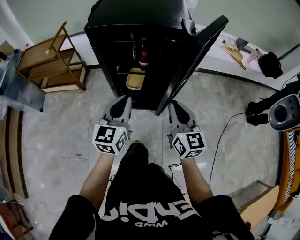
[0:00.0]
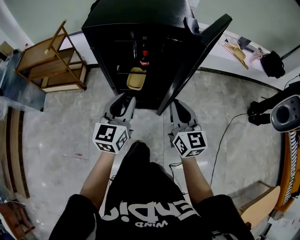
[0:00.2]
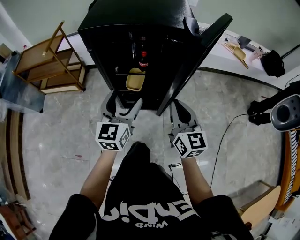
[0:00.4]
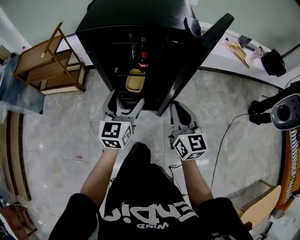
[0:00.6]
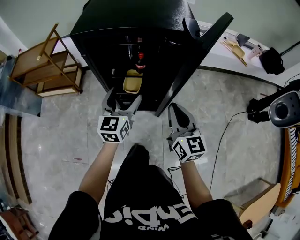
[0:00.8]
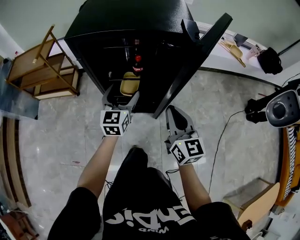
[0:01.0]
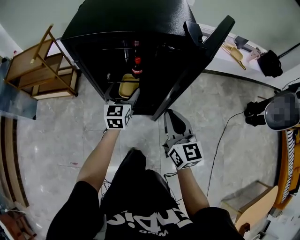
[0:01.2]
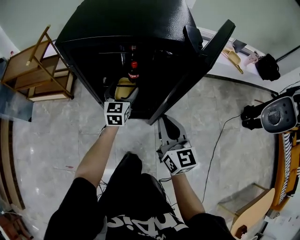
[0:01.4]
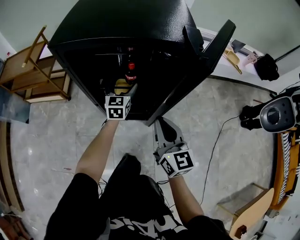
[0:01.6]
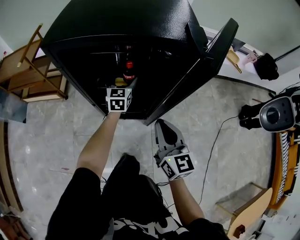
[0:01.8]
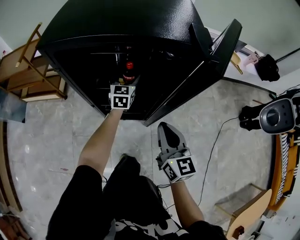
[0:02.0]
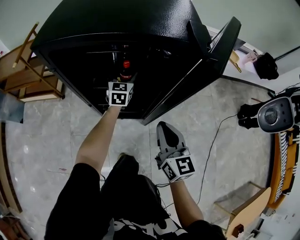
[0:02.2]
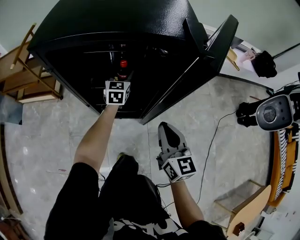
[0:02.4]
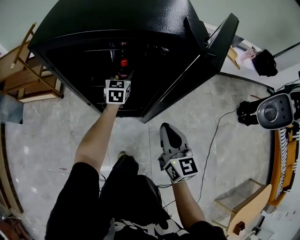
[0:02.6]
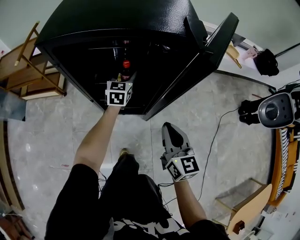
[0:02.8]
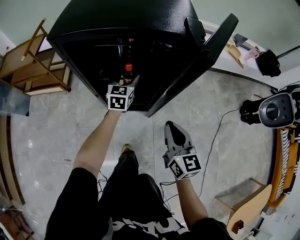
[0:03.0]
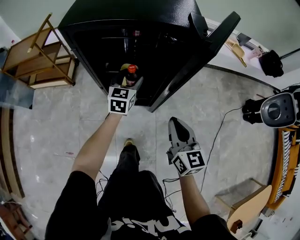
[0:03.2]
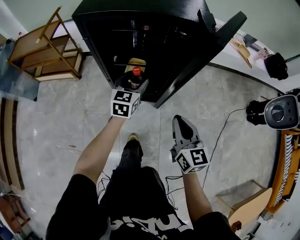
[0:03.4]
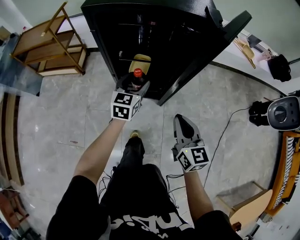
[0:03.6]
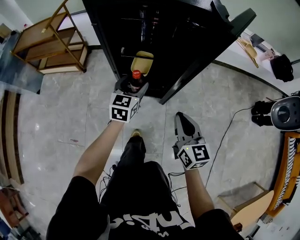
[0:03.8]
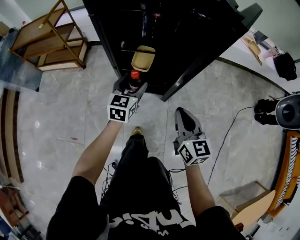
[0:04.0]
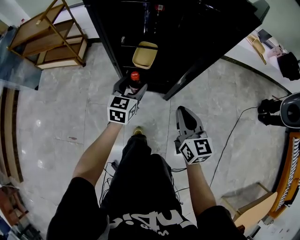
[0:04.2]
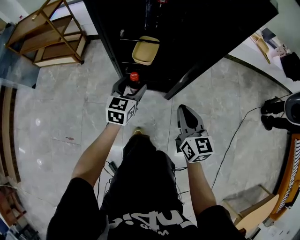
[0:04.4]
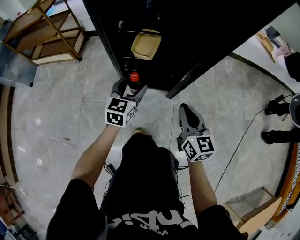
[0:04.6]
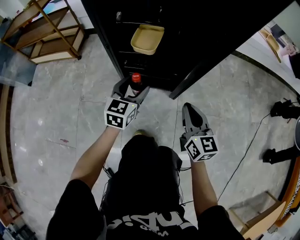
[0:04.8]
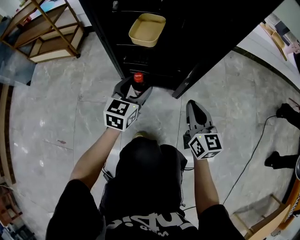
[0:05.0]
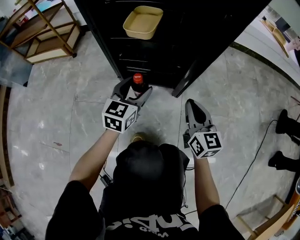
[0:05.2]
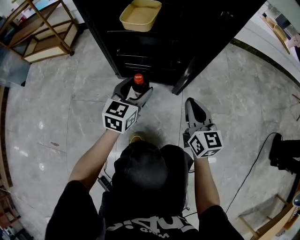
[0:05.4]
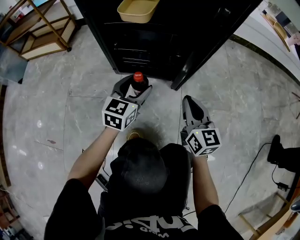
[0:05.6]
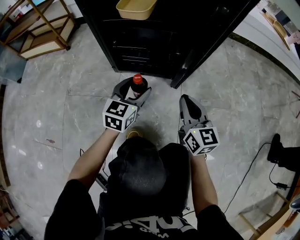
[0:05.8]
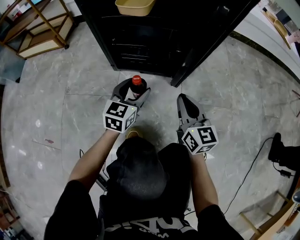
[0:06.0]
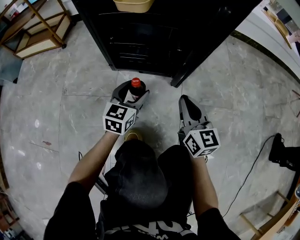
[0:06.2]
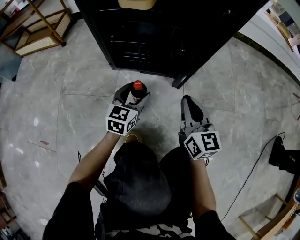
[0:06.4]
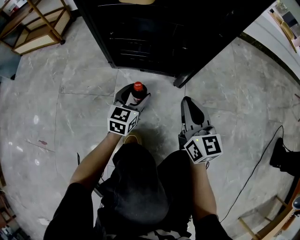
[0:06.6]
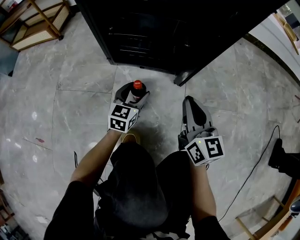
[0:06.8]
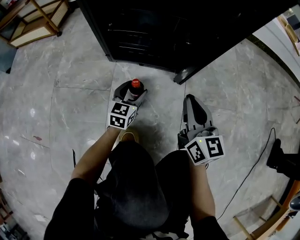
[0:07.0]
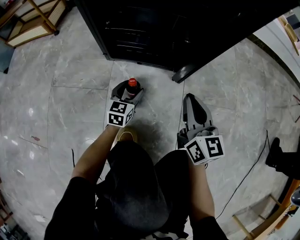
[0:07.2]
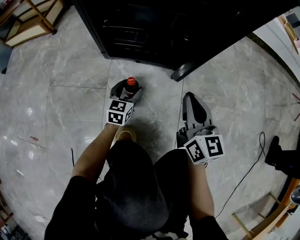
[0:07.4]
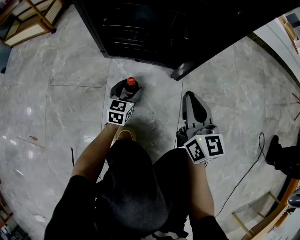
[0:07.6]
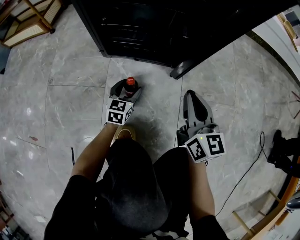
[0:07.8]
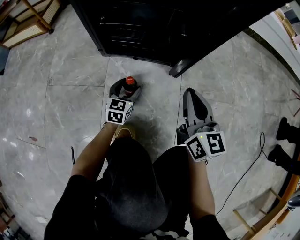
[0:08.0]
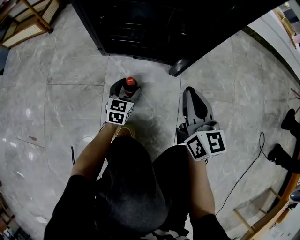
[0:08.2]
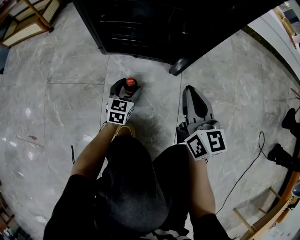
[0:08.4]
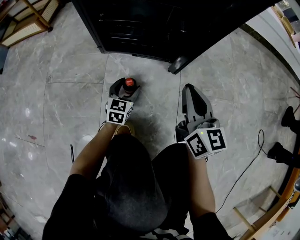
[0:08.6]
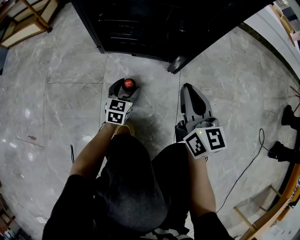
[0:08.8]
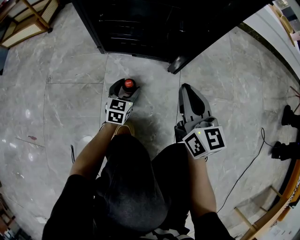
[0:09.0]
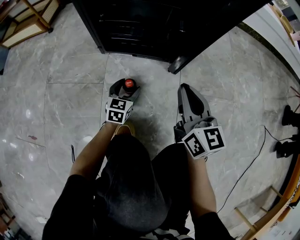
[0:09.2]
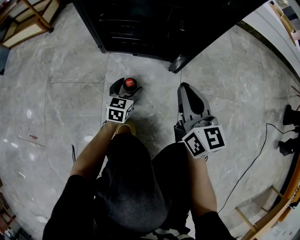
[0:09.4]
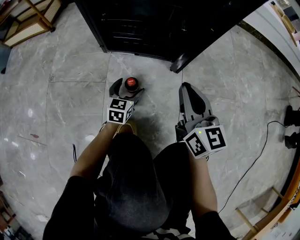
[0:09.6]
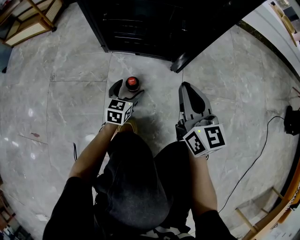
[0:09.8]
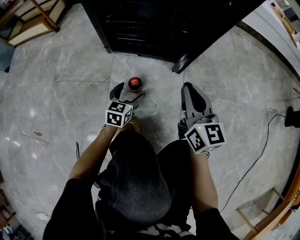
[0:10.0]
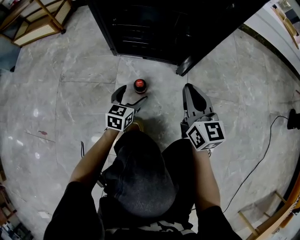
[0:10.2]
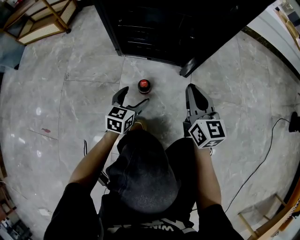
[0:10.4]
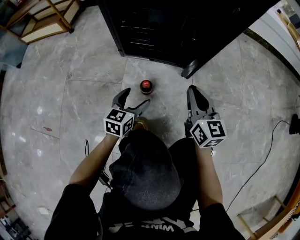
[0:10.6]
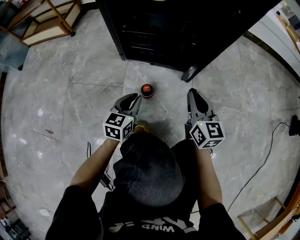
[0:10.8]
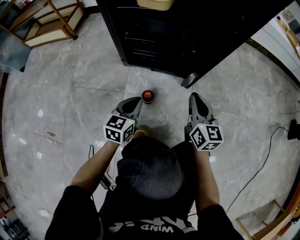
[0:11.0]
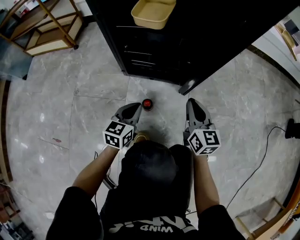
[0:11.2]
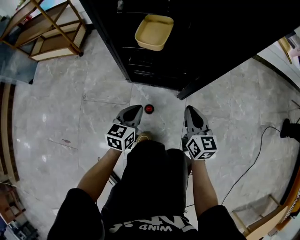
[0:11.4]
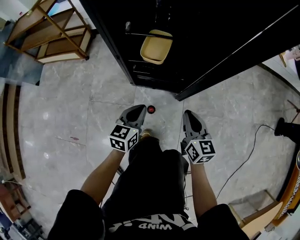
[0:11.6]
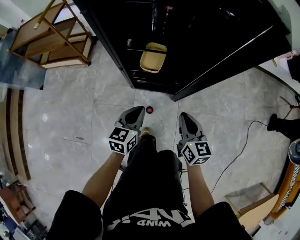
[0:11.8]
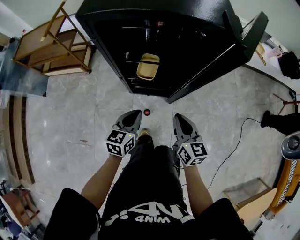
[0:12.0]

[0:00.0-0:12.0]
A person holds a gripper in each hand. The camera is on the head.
0:00.0 to 0:01.6: The right gripper goes about 10 cm forward and downward, while the left gripper shifts some 30 cm forward and downward, and opens its fingers.
0:01.6 to 0:03.0: The left gripper travels forward and back again, approximately 5 cm each way. Meanwhile the right gripper ends up roughly 5 cm from where it was.
0:03.0 to 0:04.4: The right gripper shifts some 15 cm downward; the left gripper heads backward and downward, covering about 20 cm.
0:04.4 to 0:06.0: The grippers both shift downward by about 30 cm.
0:06.0 to 0:07.6: The left gripper heads downward, covering approximately 20 cm.
0:07.6 to 0:09.0: There are only small adjustments of the grippers.
0:09.0 to 0:10.4: The left gripper travels upward and backward by about 10 cm.
0:10.4 to 0:12.0: The two grippers go approximately 50 cm upward. The left gripper closes up.

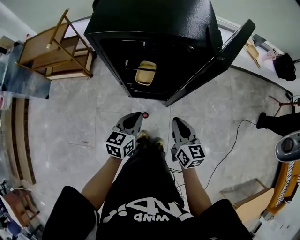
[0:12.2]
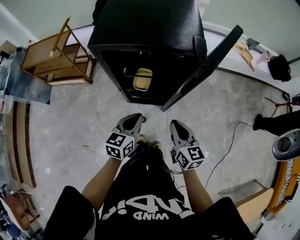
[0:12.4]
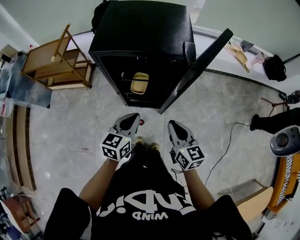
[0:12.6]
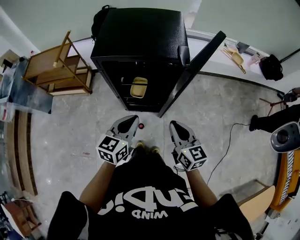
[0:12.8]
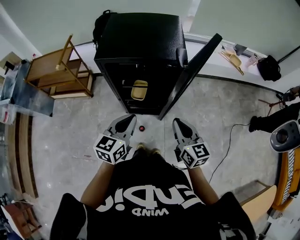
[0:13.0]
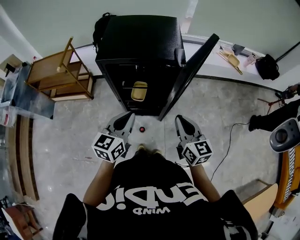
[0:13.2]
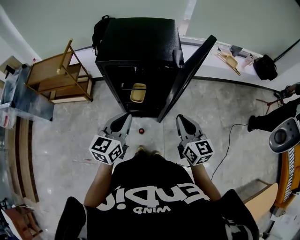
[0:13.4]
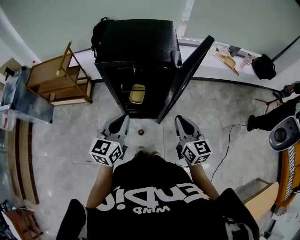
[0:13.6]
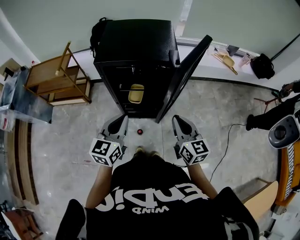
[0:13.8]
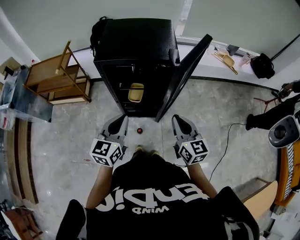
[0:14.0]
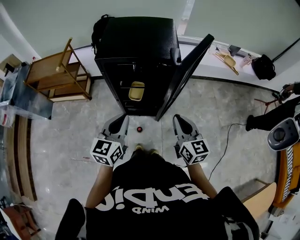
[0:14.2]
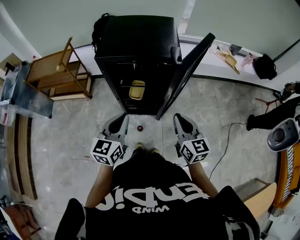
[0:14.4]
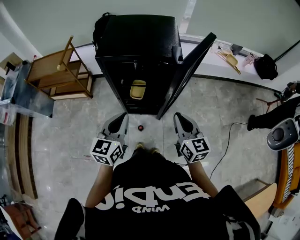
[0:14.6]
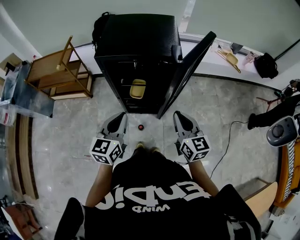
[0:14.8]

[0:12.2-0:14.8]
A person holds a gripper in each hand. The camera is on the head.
0:12.2 to 0:13.4: The grippers both shift upward by some 20 cm.
0:13.4 to 0:14.8: The grippers move only a little.

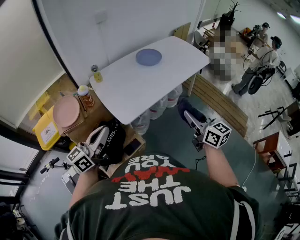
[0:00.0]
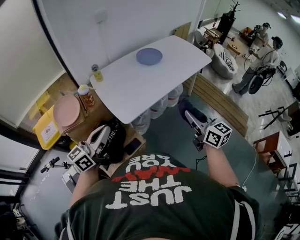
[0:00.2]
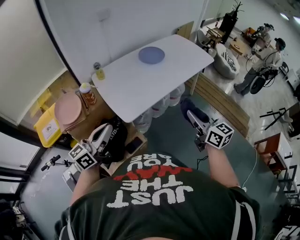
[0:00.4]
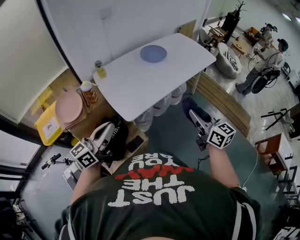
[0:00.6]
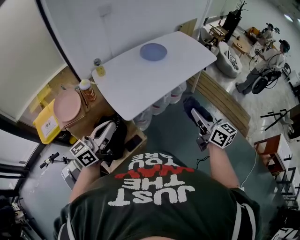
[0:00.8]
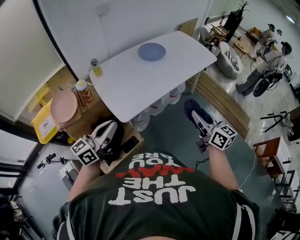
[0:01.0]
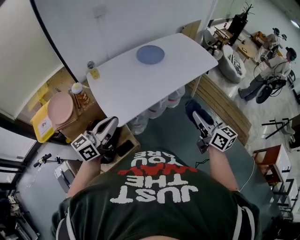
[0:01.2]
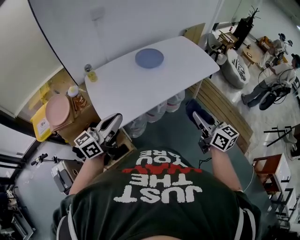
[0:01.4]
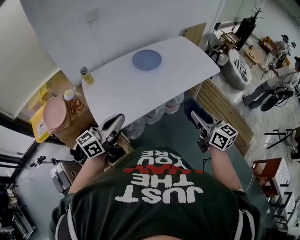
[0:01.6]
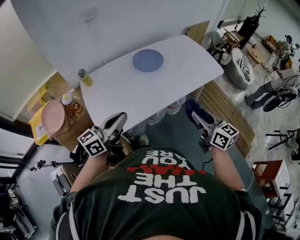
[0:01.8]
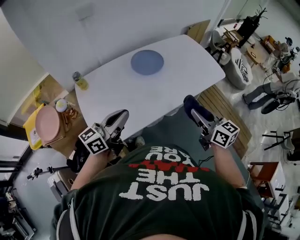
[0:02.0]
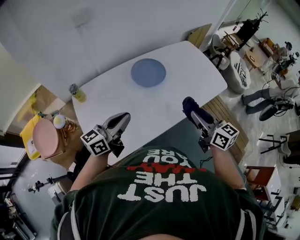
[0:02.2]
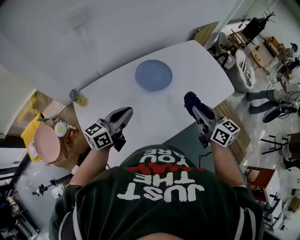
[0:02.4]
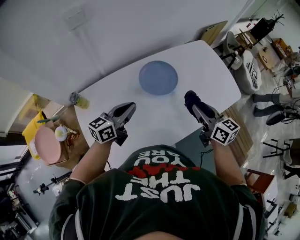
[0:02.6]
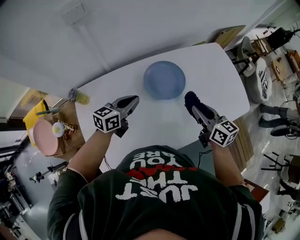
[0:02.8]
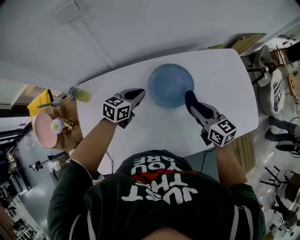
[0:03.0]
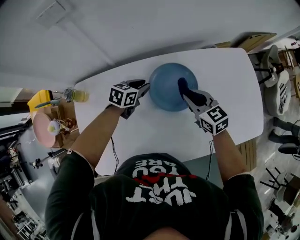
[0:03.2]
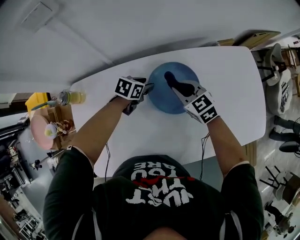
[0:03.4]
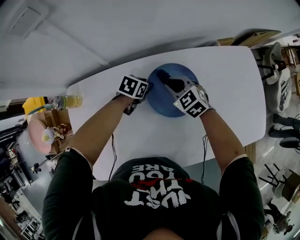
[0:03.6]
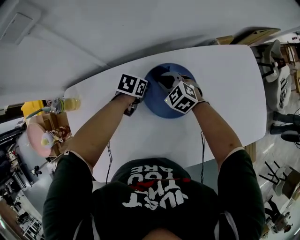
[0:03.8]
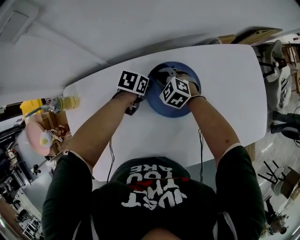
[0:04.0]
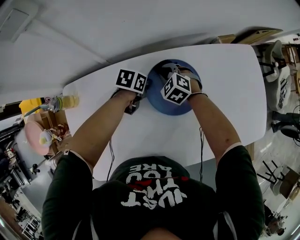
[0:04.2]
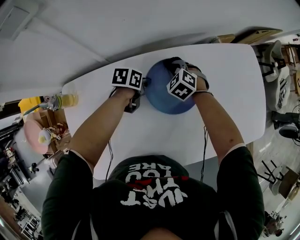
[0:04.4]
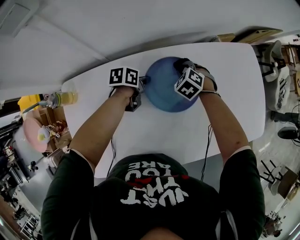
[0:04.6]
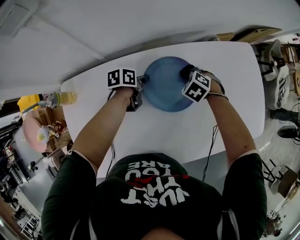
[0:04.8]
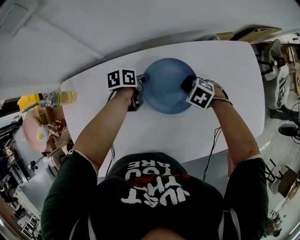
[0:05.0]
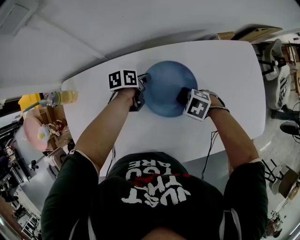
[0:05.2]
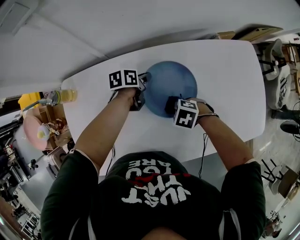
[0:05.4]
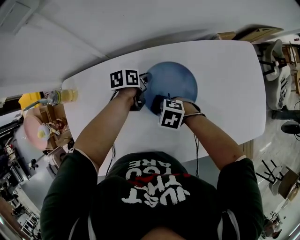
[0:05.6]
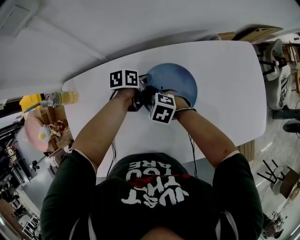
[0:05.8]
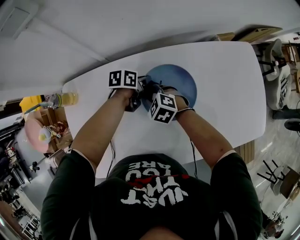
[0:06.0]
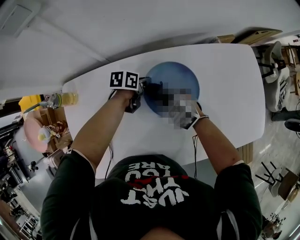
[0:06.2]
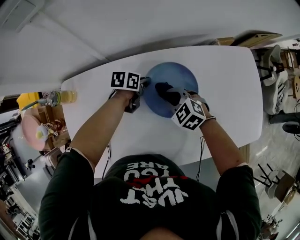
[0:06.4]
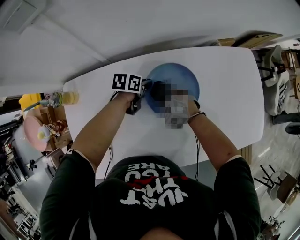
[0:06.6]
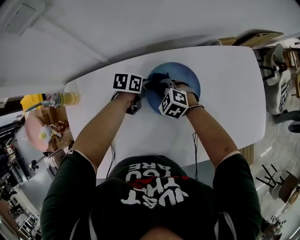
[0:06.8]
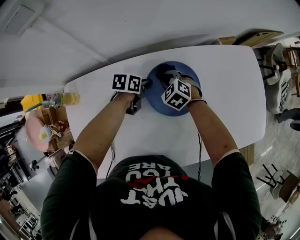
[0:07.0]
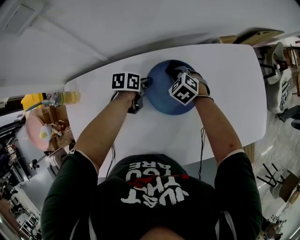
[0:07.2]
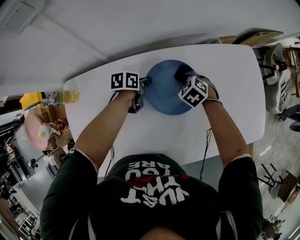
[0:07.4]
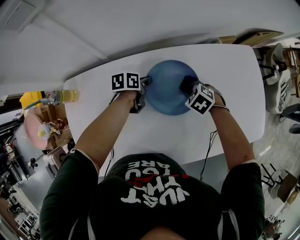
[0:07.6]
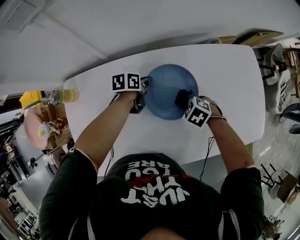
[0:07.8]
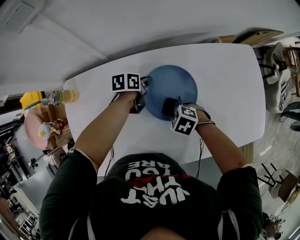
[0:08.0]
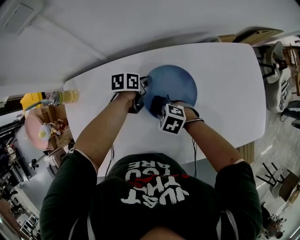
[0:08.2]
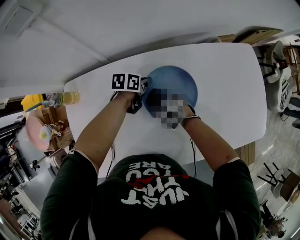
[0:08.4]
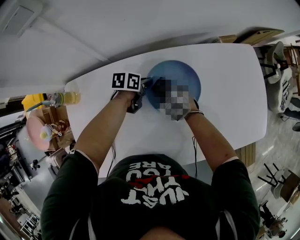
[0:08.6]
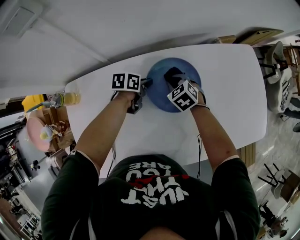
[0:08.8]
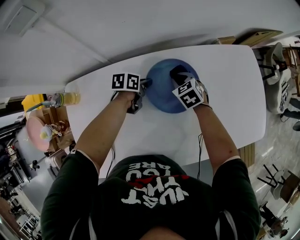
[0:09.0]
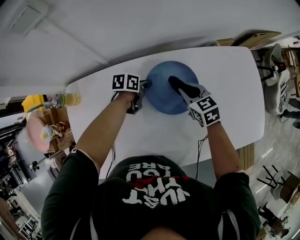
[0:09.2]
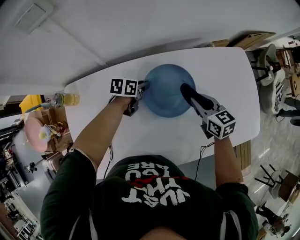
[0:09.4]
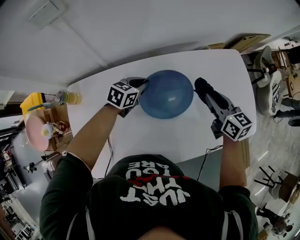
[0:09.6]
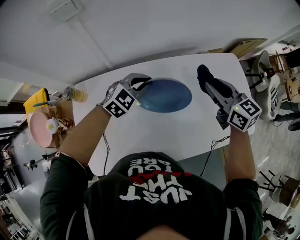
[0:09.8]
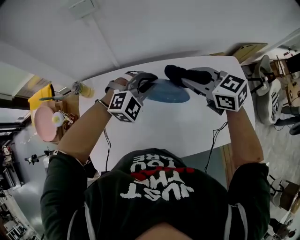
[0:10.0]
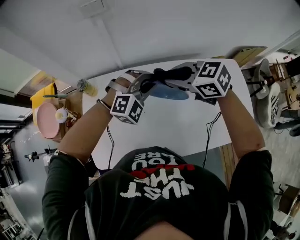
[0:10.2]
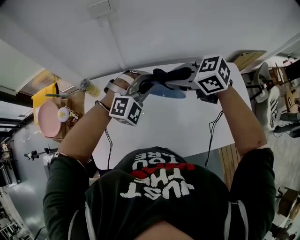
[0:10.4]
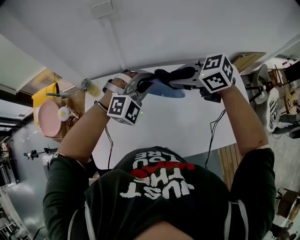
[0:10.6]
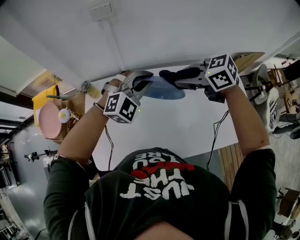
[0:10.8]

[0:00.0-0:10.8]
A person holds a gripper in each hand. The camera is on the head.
0:00.0 to 0:01.6: The right gripper heads forward and to the right, covering about 20 cm, while the left gripper goes roughly 25 cm to the right and forward.
0:01.6 to 0:03.0: Both grippers are carried forward, about 50 cm. The right gripper swivels some 30 degrees. The left gripper heads downward, covering some 25 cm, and angles its fingers downward, by about 40 degrees.
0:03.0 to 0:04.6: The right gripper goes some 30 cm downward, forward and to the left, and tilts its fingers about 40 degrees downward; the left gripper shifts approximately 20 cm downward and forward, swivels approximately 40 degrees, and opens, then closes once more.
0:04.6 to 0:06.2: The right gripper moves roughly 15 cm, and turns by approximately 30 degrees.
0:06.2 to 0:07.8: The right gripper shifts by approximately 15 cm, and rotates about 30 degrees.
0:07.8 to 0:09.2: The right gripper ends up about 10 cm from where it was, and tilts its fingers approximately 30 degrees upward.
0:09.2 to 0:10.8: The two grippers go about 30 cm upward. The left gripper twists about 100 degrees clockwise, seen from behind, while the right gripper turns by roughly 40 degrees.
